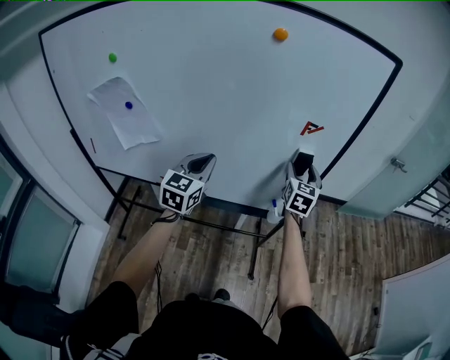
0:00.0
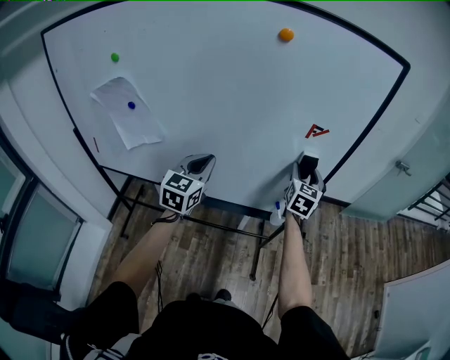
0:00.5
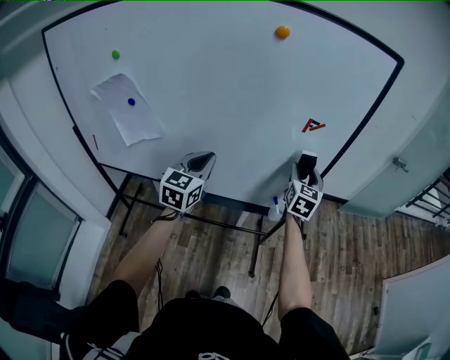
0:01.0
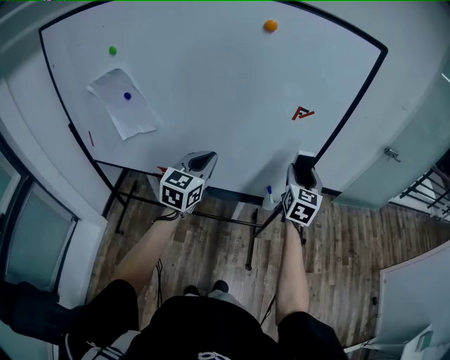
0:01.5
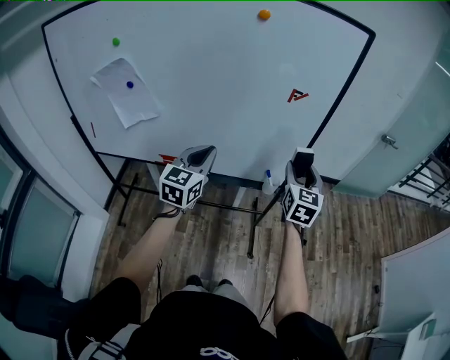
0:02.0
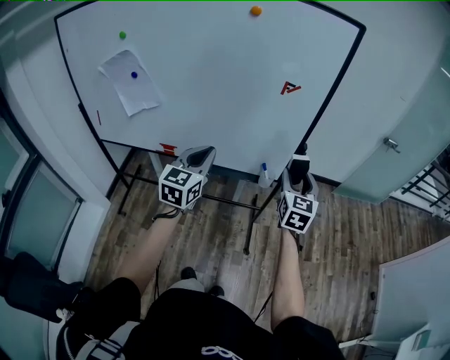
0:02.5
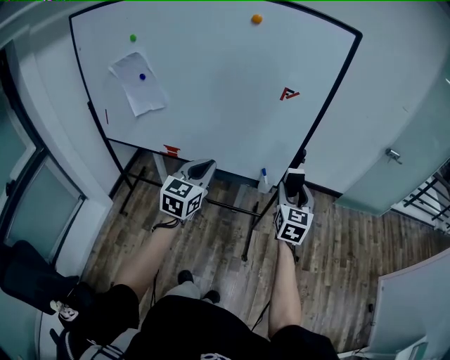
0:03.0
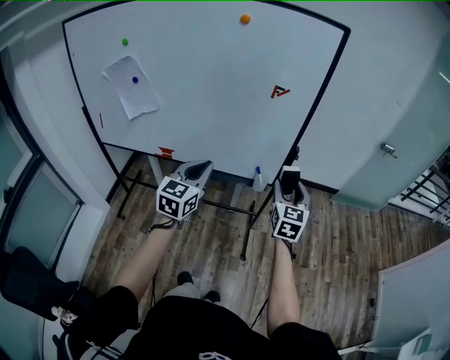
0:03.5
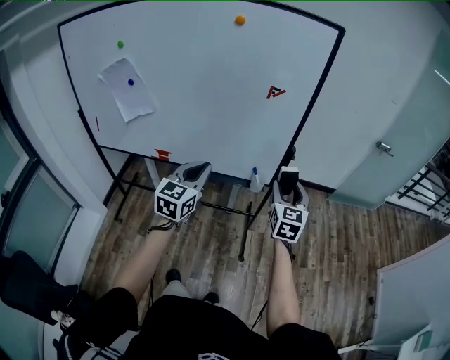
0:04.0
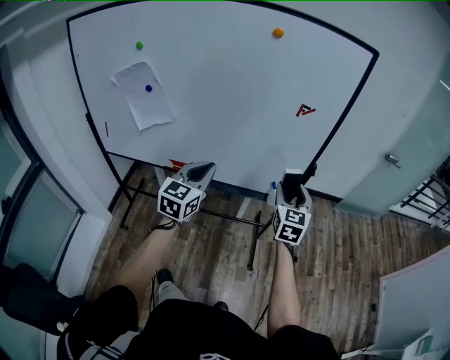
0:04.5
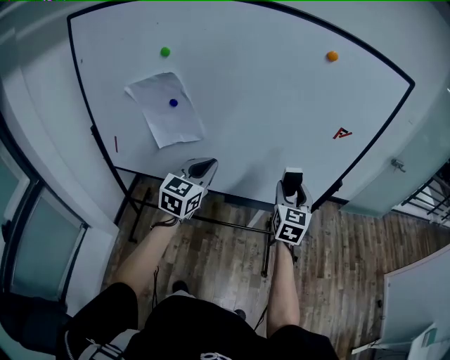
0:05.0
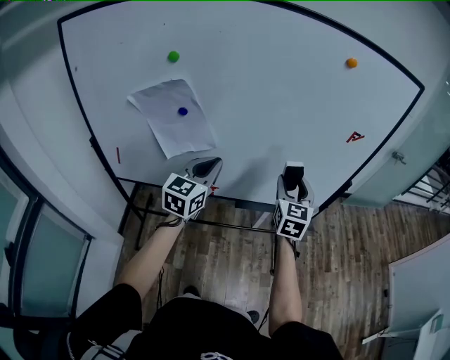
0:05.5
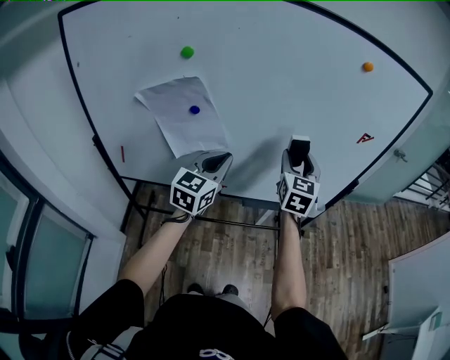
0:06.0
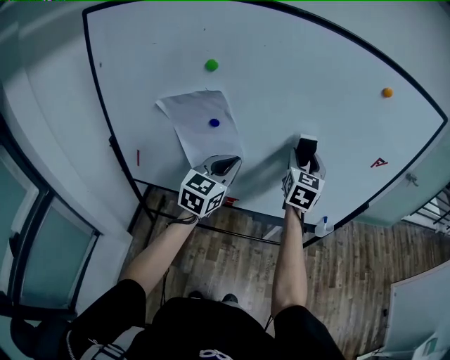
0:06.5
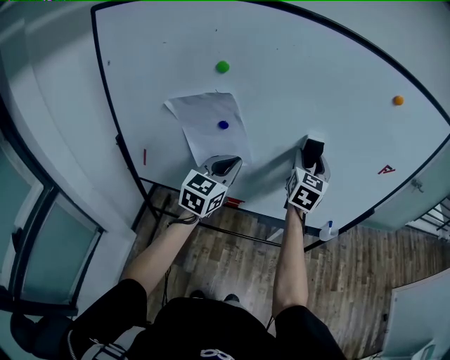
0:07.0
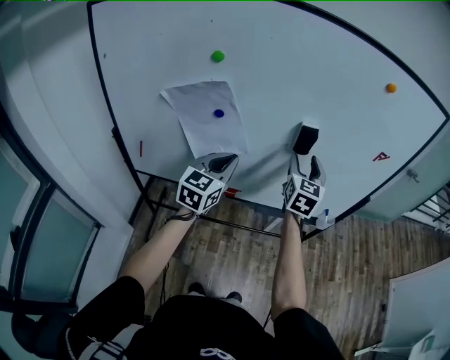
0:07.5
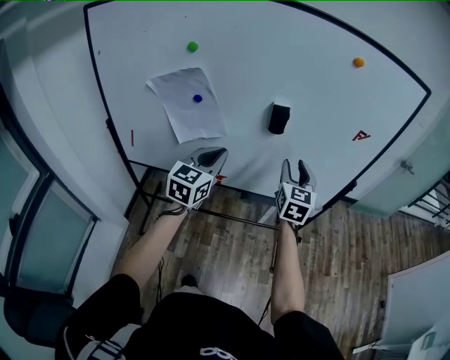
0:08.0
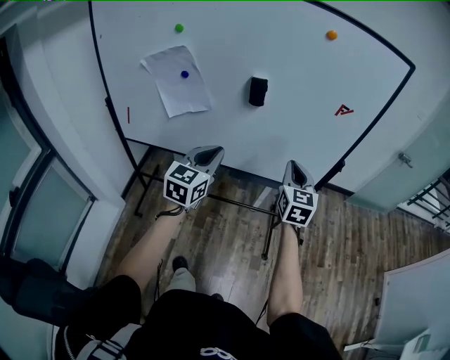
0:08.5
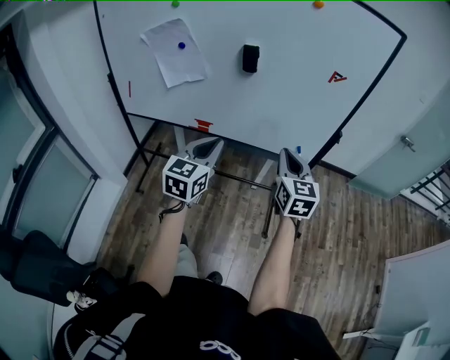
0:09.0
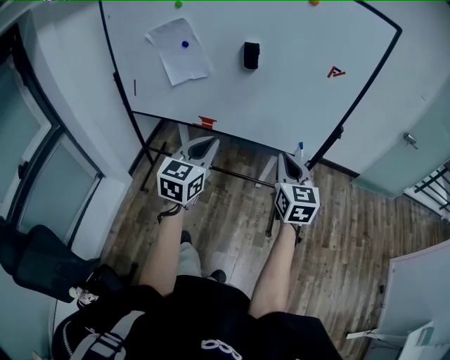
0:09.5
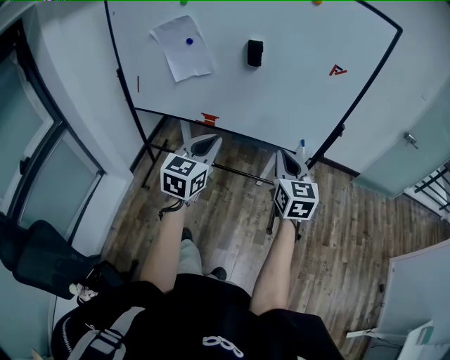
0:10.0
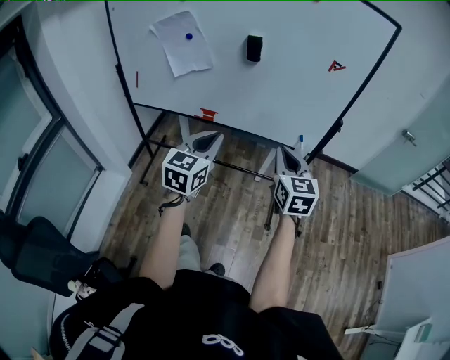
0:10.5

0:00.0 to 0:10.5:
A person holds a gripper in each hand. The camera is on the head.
0:00.0 to 0:02.0: The left gripper travels backward and to the right by about 10 cm; the right gripper travels backward by some 15 cm.
0:02.0 to 0:04.0: The left gripper travels to the right and backward by about 10 cm, while the right gripper goes about 10 cm backward and to the right.
0:04.0 to 0:06.5: The two grippers go approximately 40 cm to the left.
0:06.5 to 0:08.5: The two grippers go about 20 cm to the right and backward. The right gripper closes.
0:08.5 to 0:10.5: Both grippers move backward, some 15 cm.

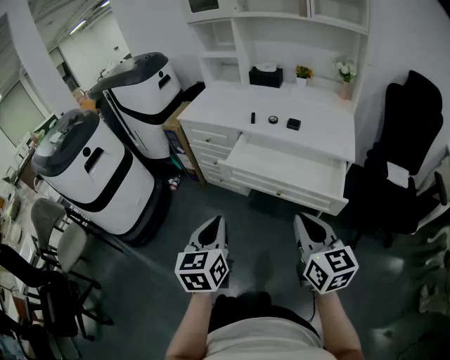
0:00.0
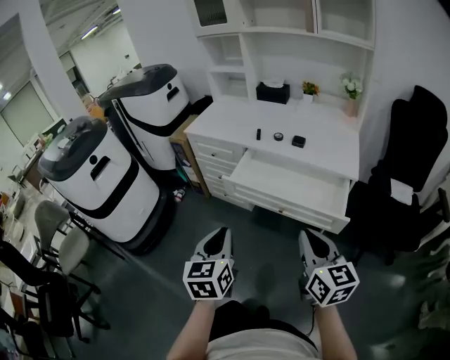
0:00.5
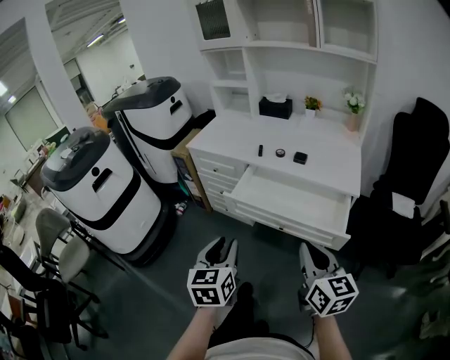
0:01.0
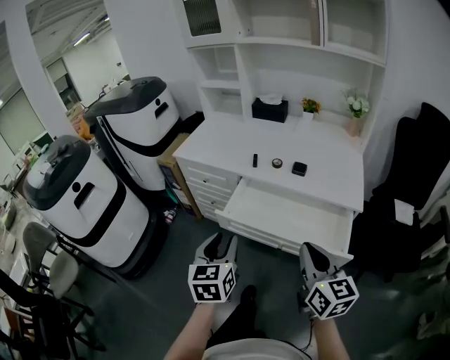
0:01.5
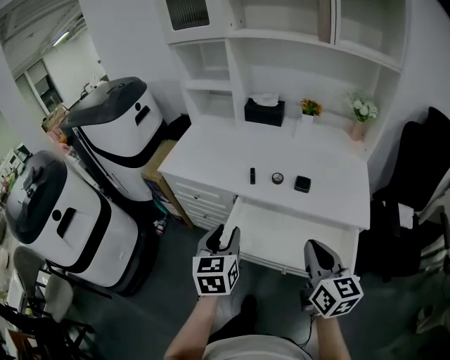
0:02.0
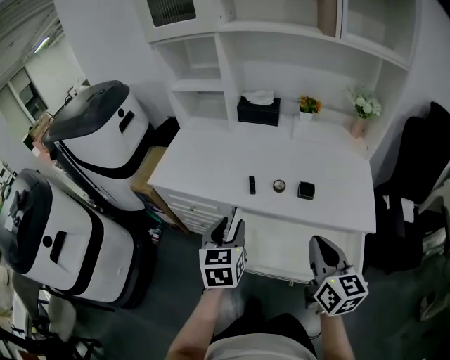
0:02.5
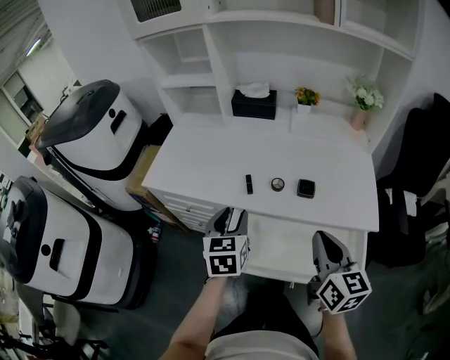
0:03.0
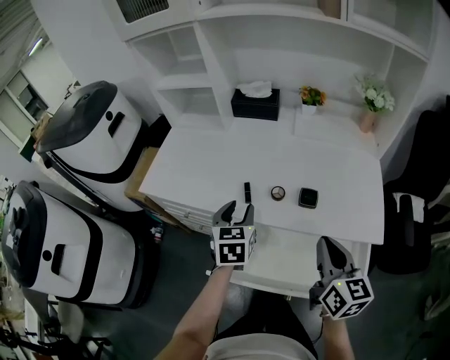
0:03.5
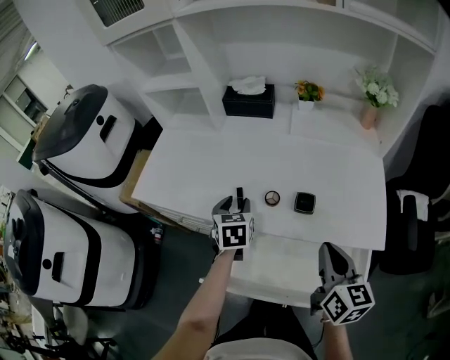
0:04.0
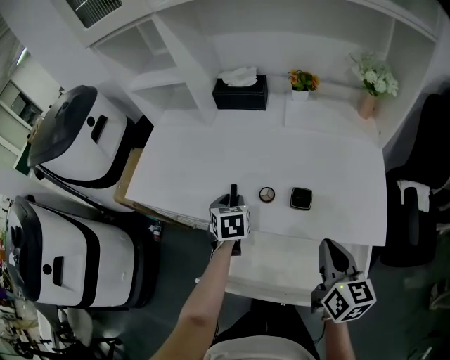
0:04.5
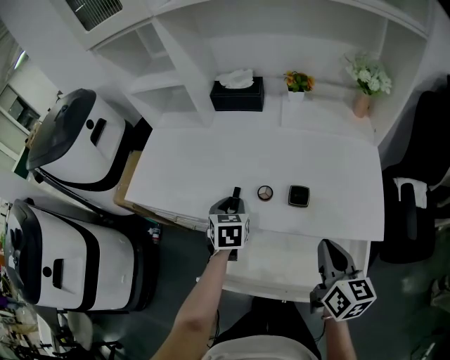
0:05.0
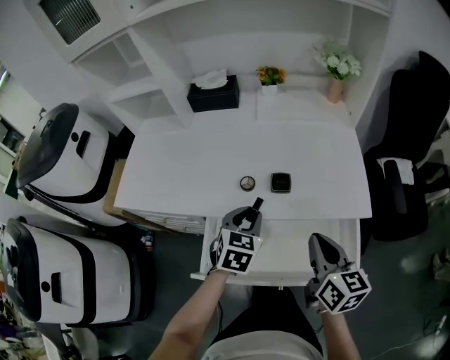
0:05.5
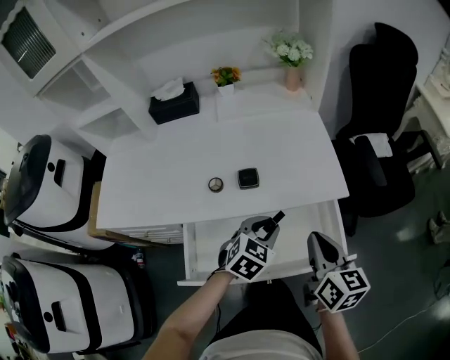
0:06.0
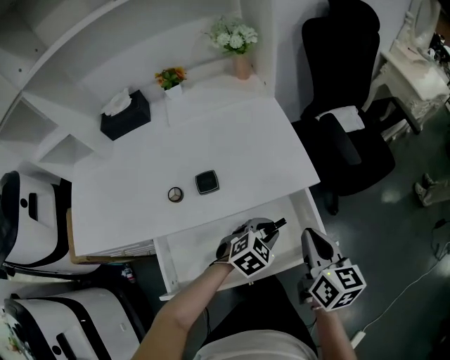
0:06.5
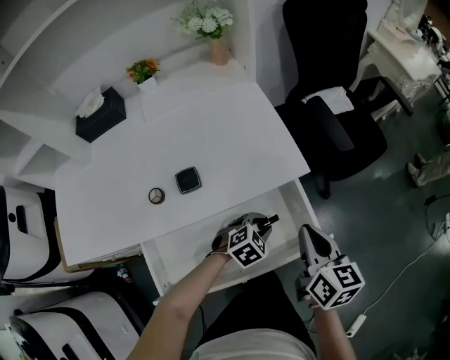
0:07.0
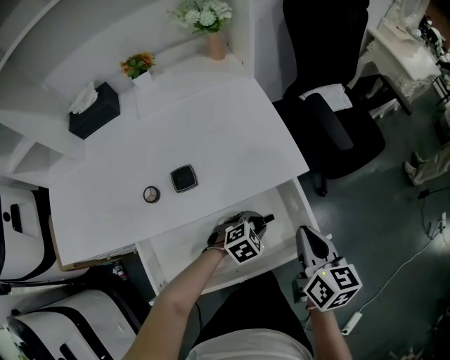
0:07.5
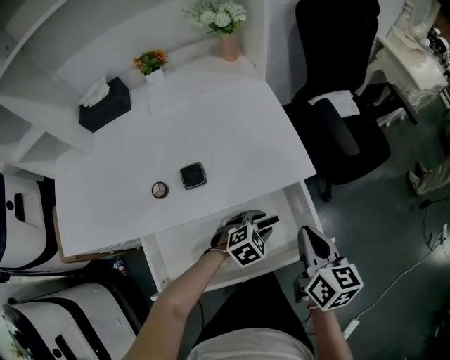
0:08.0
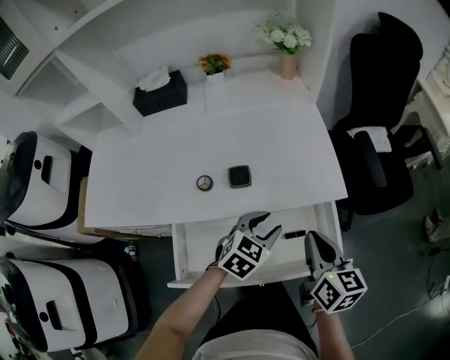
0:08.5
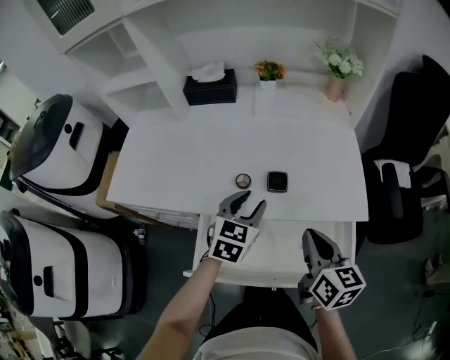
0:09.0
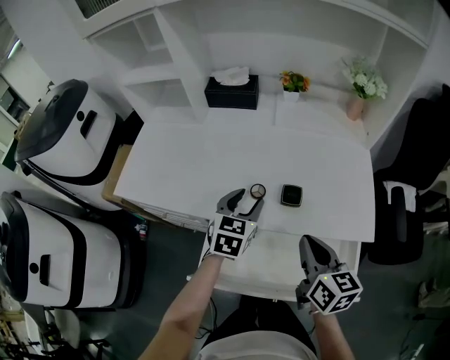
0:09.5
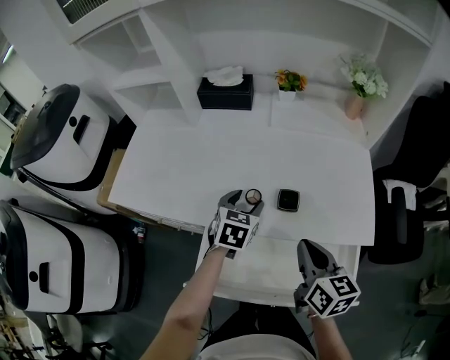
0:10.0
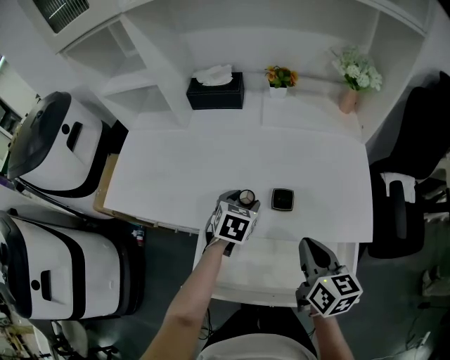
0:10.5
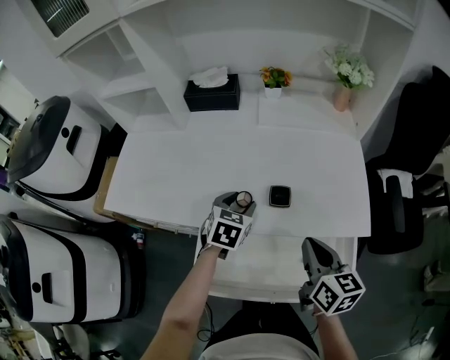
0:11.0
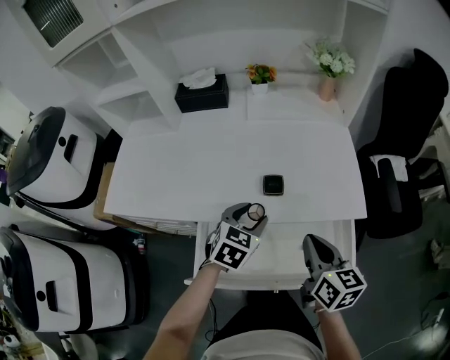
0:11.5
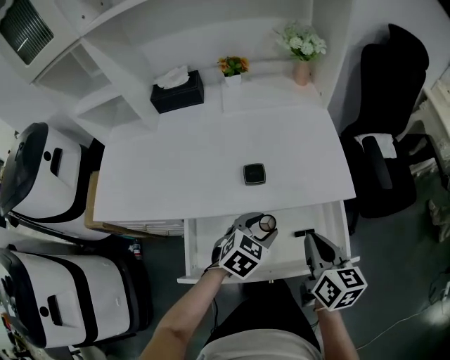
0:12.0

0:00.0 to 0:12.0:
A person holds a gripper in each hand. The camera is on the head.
0:00.0 to 0:02.0: The two grippers go roughly 30 cm forward. The left gripper opens its fingers.
0:02.0 to 0:04.0: The left gripper moves forward and downward, about 30 cm, while the right gripper moves forward and to the right, some 15 cm.
0:04.0 to 0:06.0: The left gripper shifts by roughly 30 cm, and swivels some 60 degrees; the right gripper shifts by approximately 10 cm.
0:06.0 to 0:08.0: The left gripper goes roughly 15 cm downward, and rotates some 30 degrees. The right gripper shifts by some 10 cm.
0:08.0 to 0:10.0: The left gripper changes place by about 35 cm, and turns by about 70 degrees; the right gripper ends up roughly 20 cm from where it was, and rotates some 30 degrees.
0:10.0 to 0:12.0: The right gripper shifts some 10 cm to the right and backward. The left gripper heads to the right and backward, covering about 20 cm, and rotates about 30 degrees.

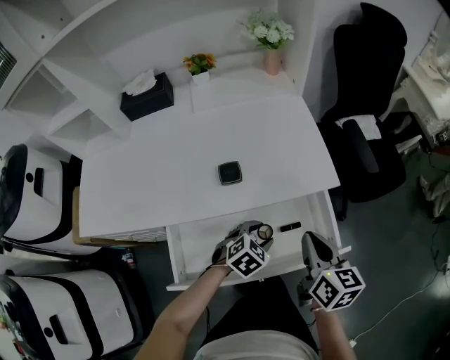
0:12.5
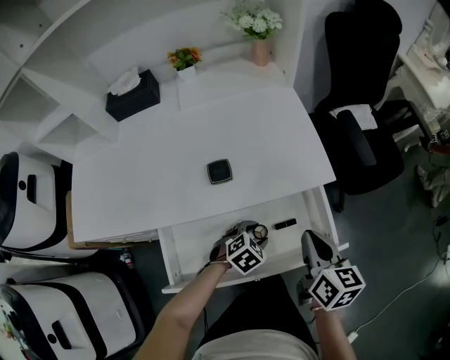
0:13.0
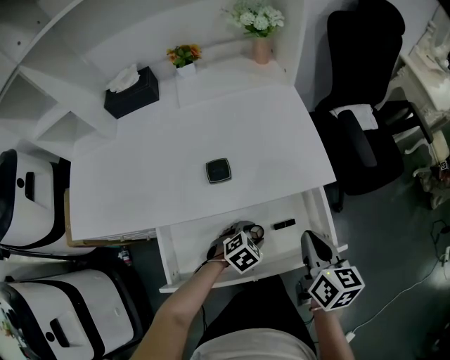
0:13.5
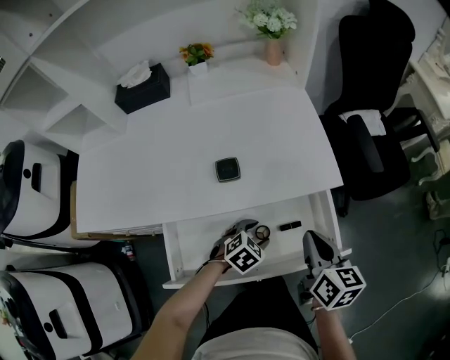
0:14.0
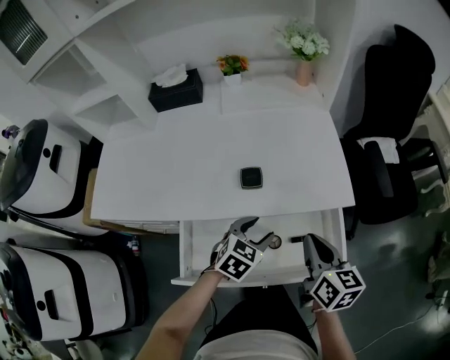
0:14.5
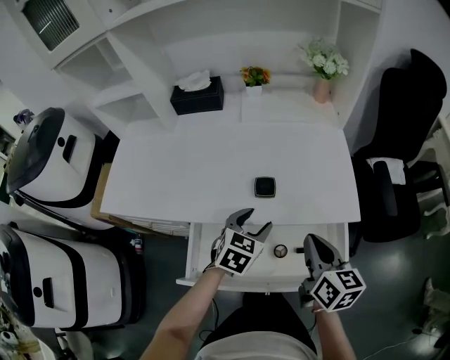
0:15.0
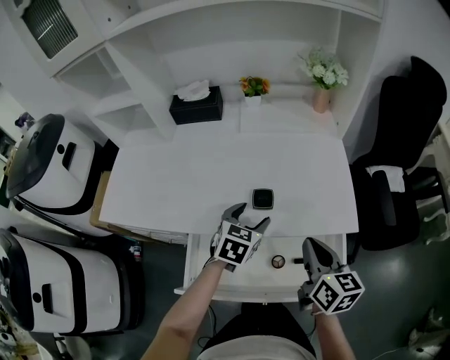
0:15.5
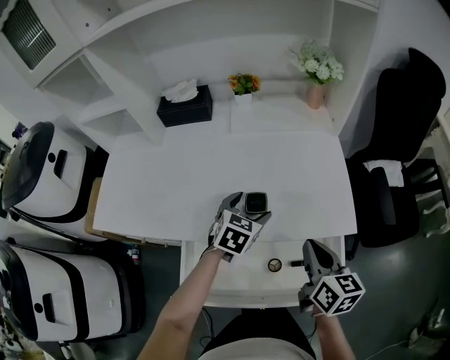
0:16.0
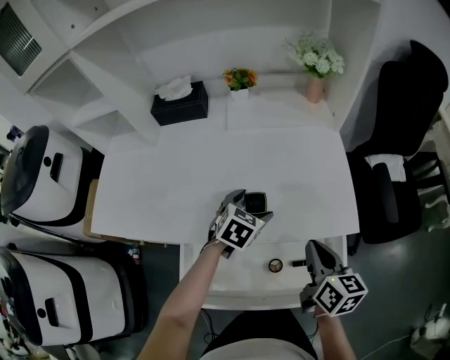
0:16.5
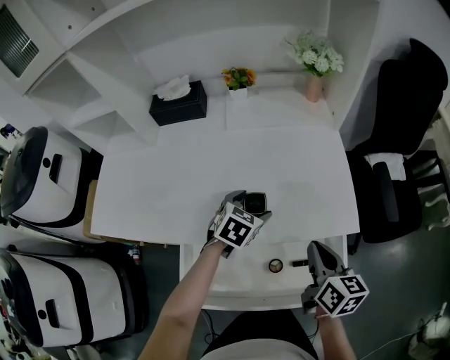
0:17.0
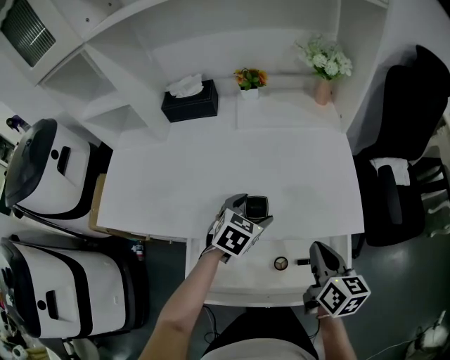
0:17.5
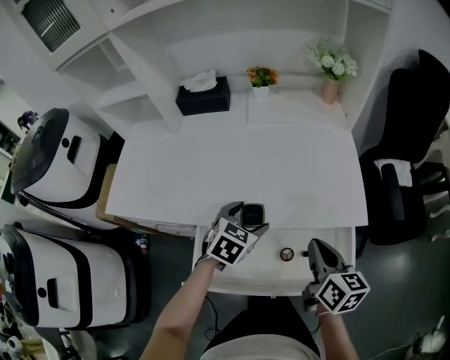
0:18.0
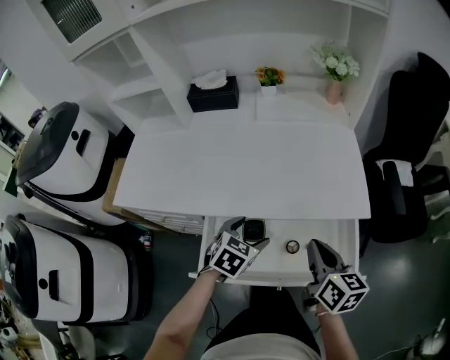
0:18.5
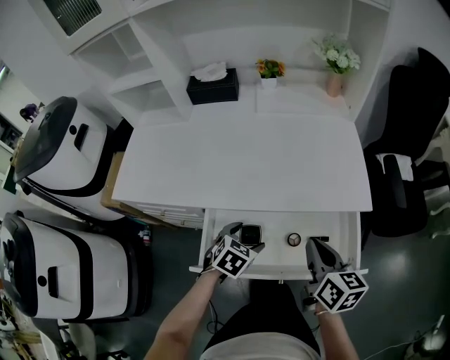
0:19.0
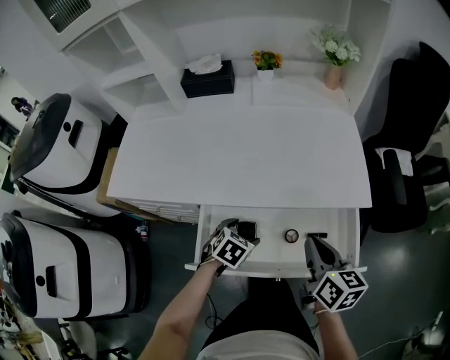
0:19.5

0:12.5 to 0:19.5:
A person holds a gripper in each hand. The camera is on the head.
0:12.5 to 0:14.5: The left gripper heads upward and to the left, covering approximately 10 cm, and swivels approximately 20 degrees.
0:14.5 to 0:16.0: The left gripper heads forward, covering about 15 cm, and opens. The right gripper shifts approximately 5 cm forward.
0:16.0 to 0:17.5: There are only small adjustments of the grippers.
0:17.5 to 0:19.5: The left gripper moves backward and downward, approximately 20 cm, while the right gripper heads backward, covering approximately 10 cm.
